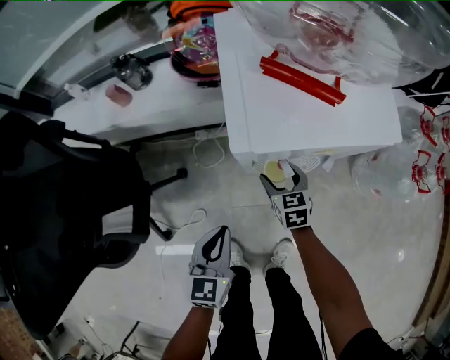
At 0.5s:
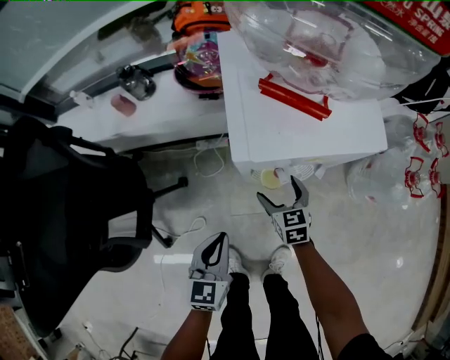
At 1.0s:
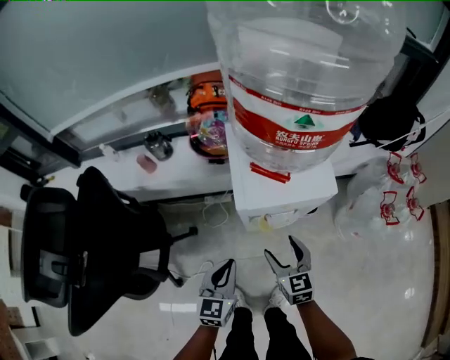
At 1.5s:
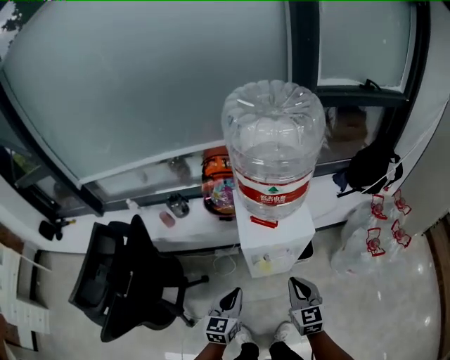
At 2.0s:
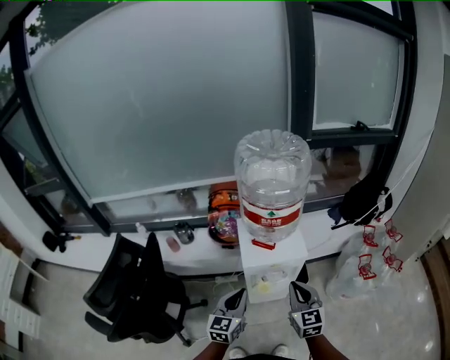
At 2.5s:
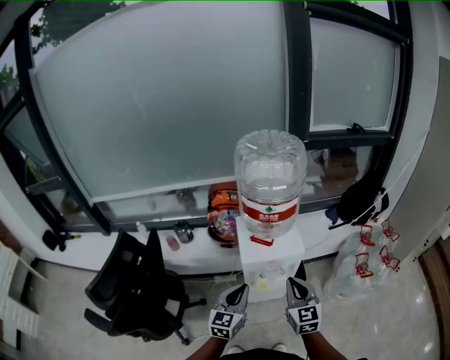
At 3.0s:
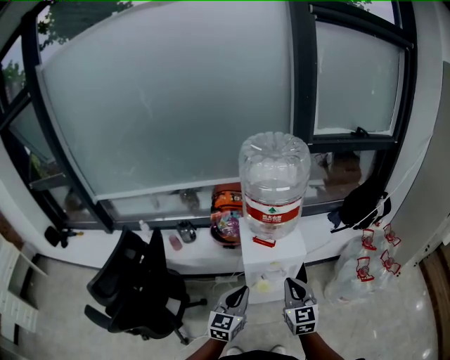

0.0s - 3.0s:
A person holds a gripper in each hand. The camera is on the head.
0.0s - 1.5s: The right gripper shifts about 40 cm upward, rotates about 20 degrees, and closes. The left gripper goes roughly 20 cm upward.
1.5s - 3.0s: Both grippers travel together upward, approximately 10 cm.

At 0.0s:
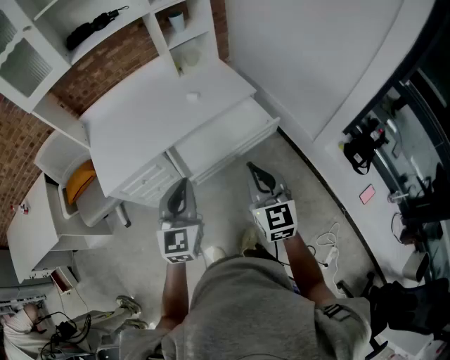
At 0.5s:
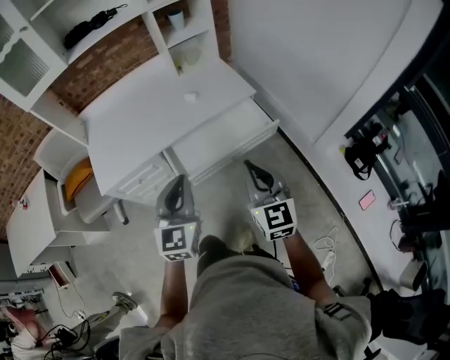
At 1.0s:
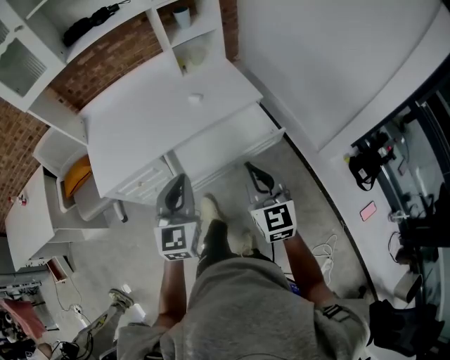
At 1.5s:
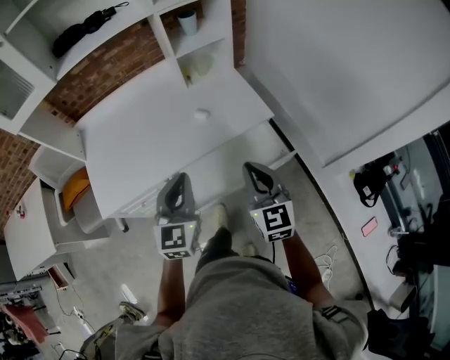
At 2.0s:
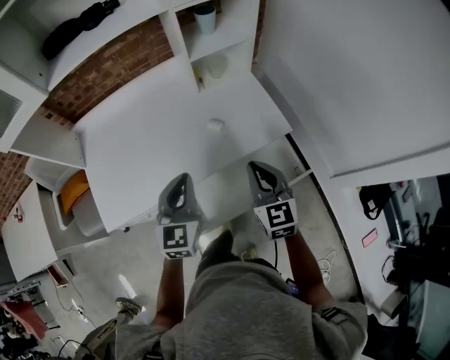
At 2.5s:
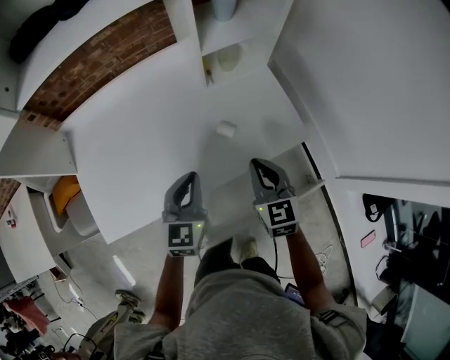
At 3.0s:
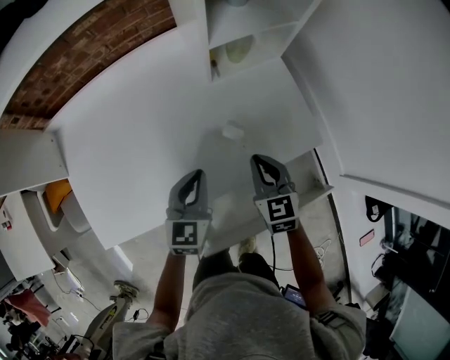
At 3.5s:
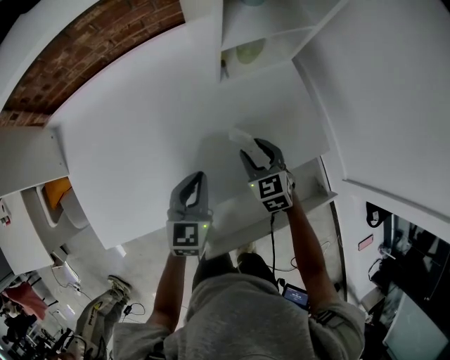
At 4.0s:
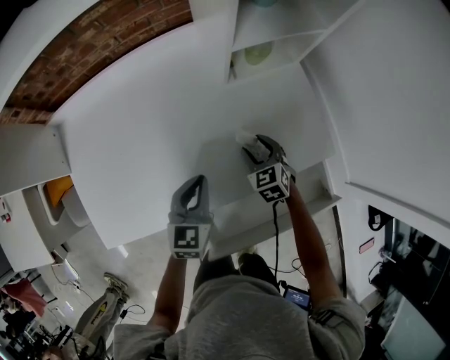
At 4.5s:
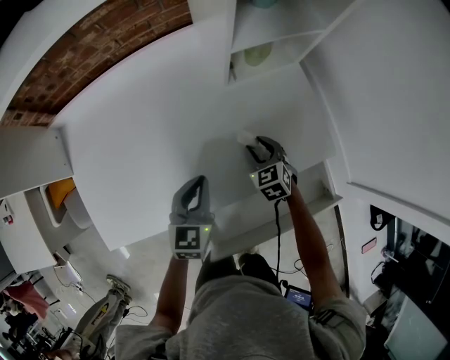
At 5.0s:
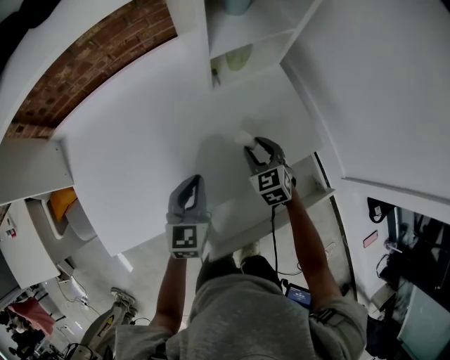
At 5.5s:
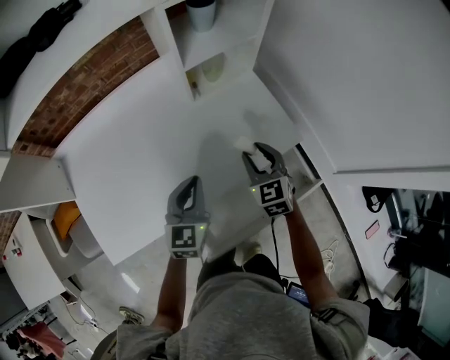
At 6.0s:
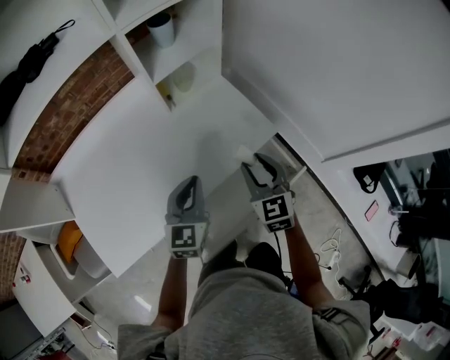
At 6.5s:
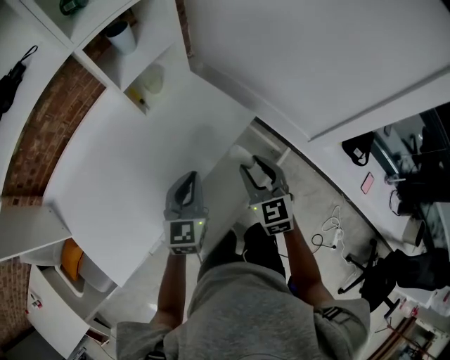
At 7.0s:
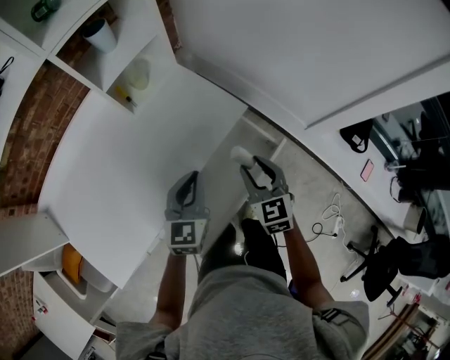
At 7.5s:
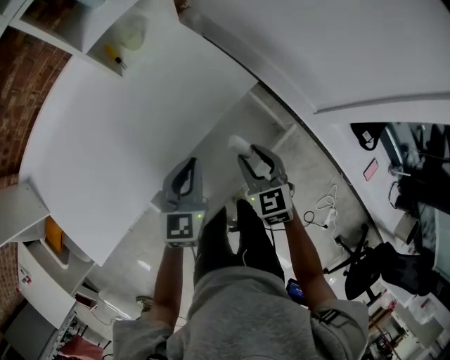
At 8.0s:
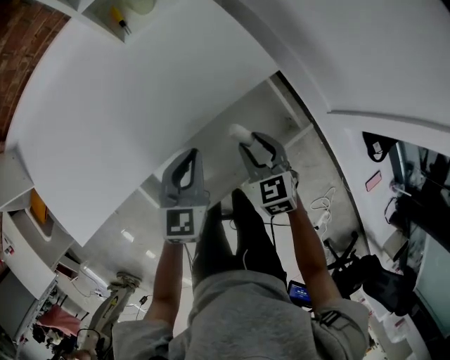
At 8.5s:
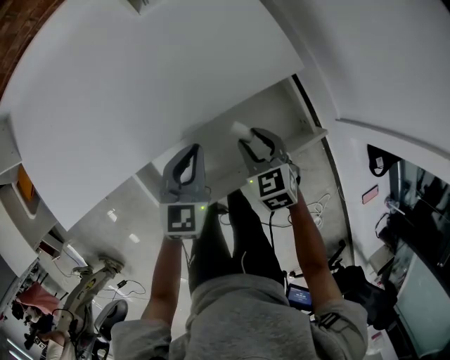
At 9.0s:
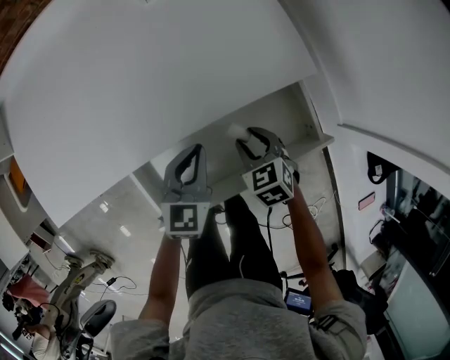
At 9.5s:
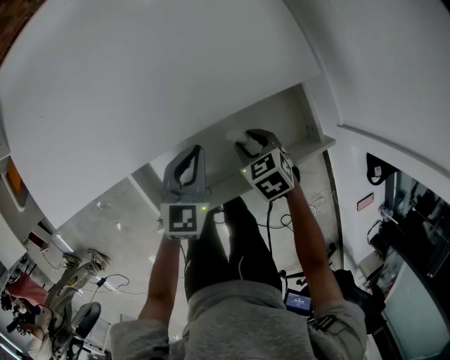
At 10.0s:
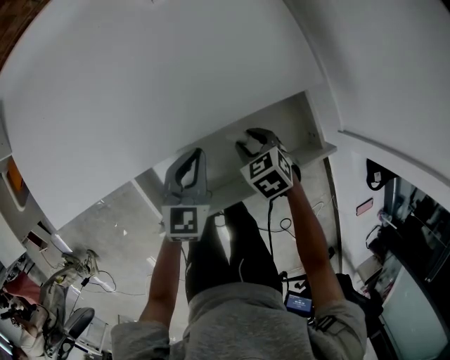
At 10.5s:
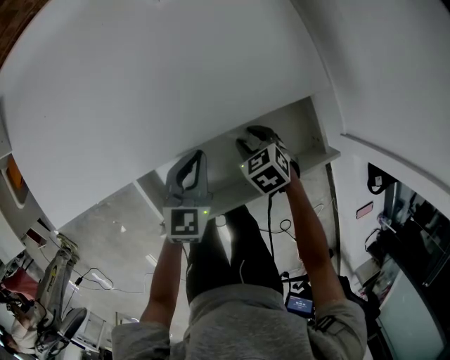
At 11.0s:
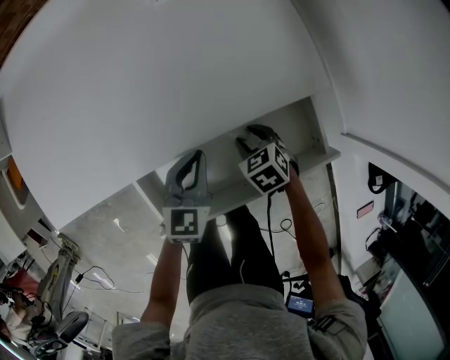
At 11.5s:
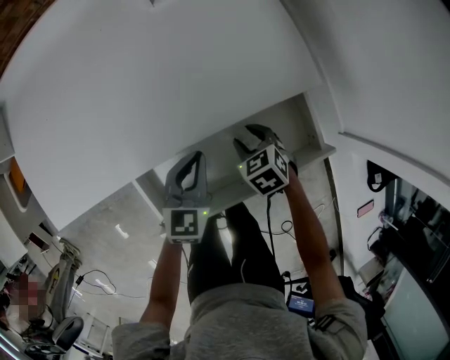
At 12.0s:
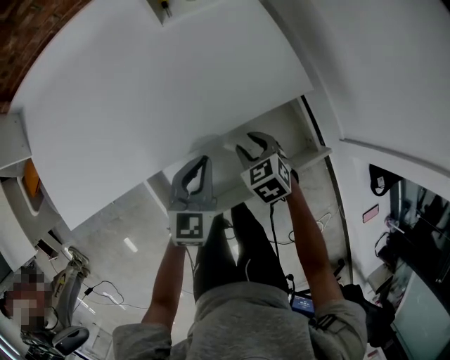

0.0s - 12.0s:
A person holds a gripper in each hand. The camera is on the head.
0.0s - 2.0s: Both grippers travel together forward, some 35 cm.
2.0s - 4.0s: The two grippers go some 30 cm downward and forward. The right gripper rotates roughly 30 degrees, and opens.
4.0s - 6.0s: The left gripper travels upward, to the right and backward by about 15 cm; the right gripper heads upward, backward and to the right, covering about 30 cm, and turns by some 30 degrees.
6.0s - 8.0s: The right gripper travels downward by some 20 cm, and turns by about 20 degrees. The left gripper is displaced downward and to the right by some 20 cm.
8.0s - 10.0s: The left gripper goes some 10 cm downward. Meanwhile the right gripper heads downward and to the left, covering roughly 15 cm, and turns by about 30 degrees.
10.0s - 12.0s: The two grippers go some 5 cm upward.

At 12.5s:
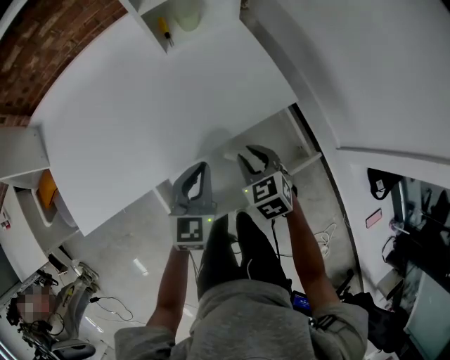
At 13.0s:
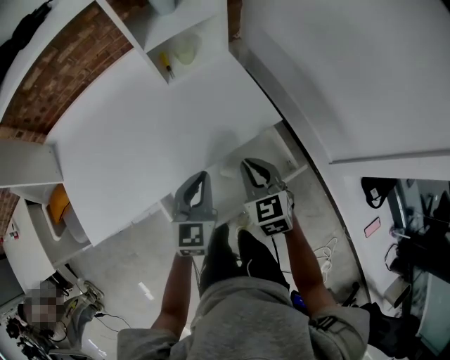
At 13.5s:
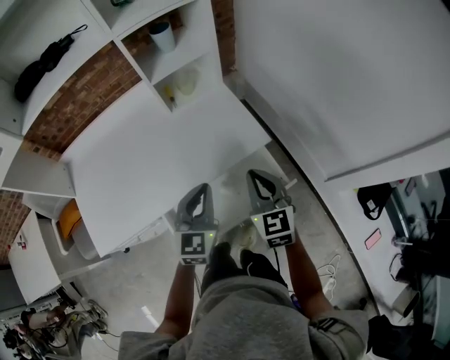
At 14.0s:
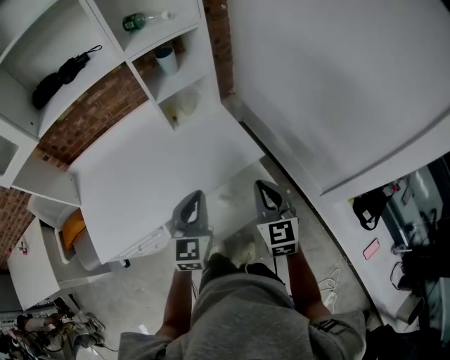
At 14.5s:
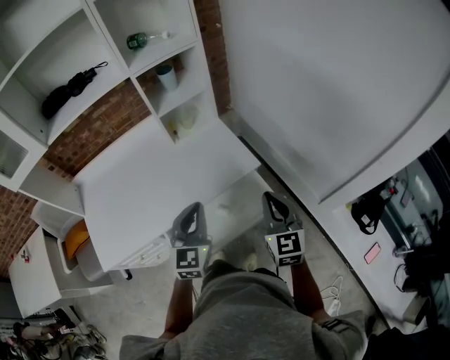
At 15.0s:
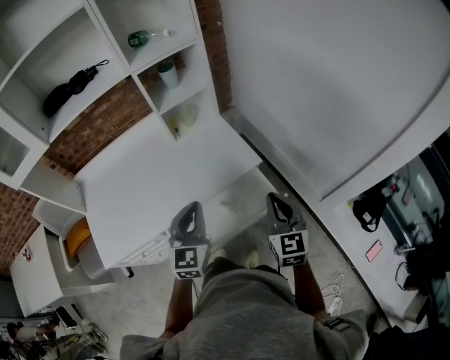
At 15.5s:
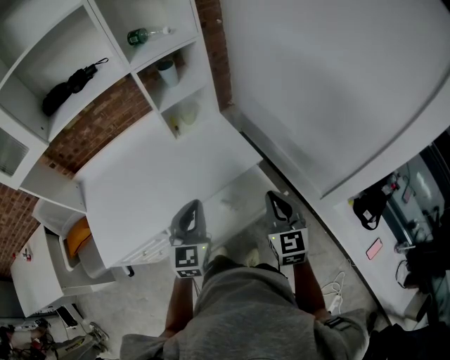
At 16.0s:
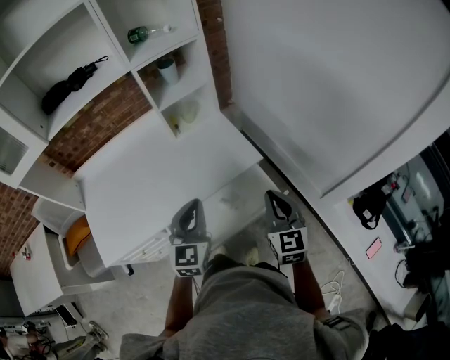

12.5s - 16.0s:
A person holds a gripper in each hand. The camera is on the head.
12.5s - 14.5s: The left gripper goes about 20 cm upward. The right gripper heads upward and to the right, covering about 30 cm, angles its fingers upward, by about 40 degrees, and closes its fingers.
14.5s - 16.0s: Both grippers stay put.

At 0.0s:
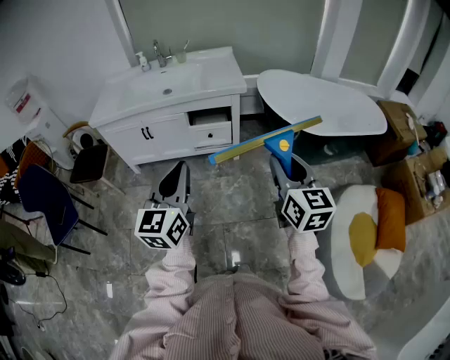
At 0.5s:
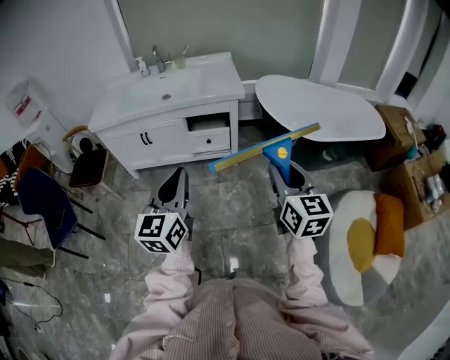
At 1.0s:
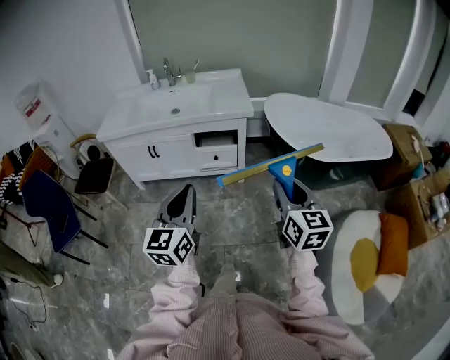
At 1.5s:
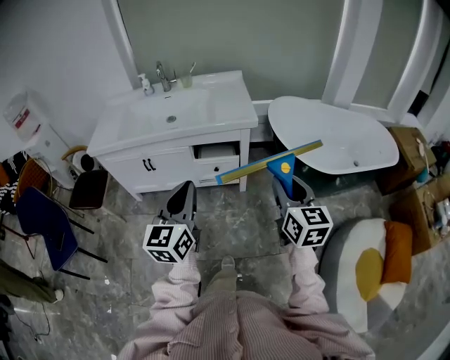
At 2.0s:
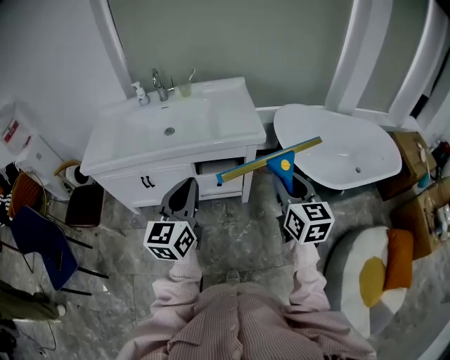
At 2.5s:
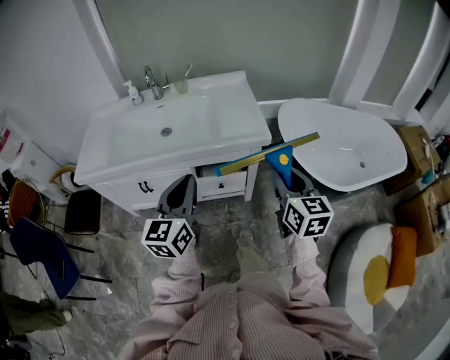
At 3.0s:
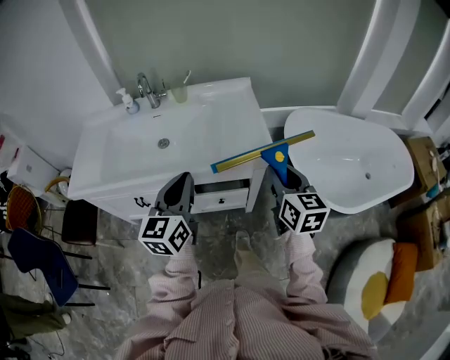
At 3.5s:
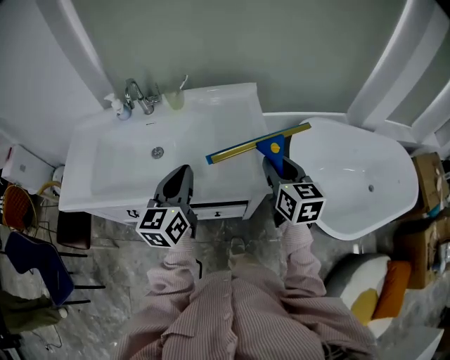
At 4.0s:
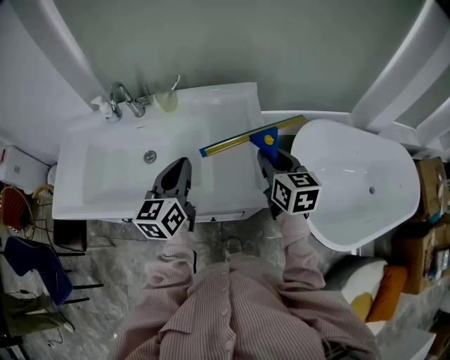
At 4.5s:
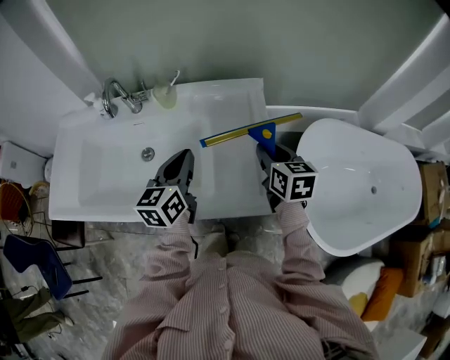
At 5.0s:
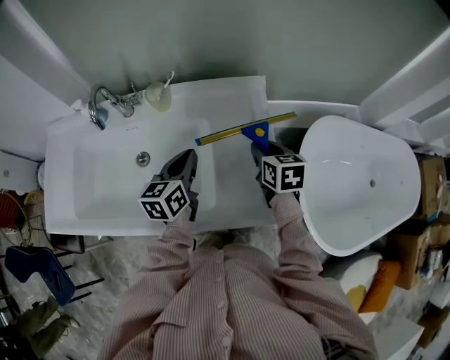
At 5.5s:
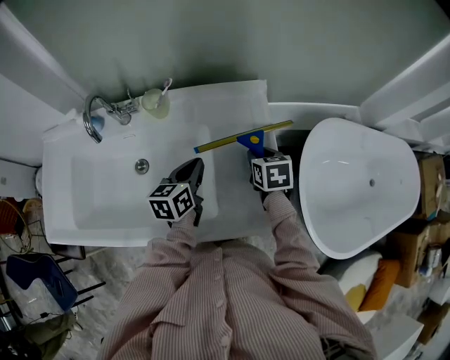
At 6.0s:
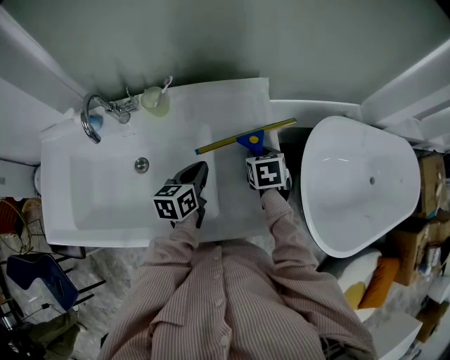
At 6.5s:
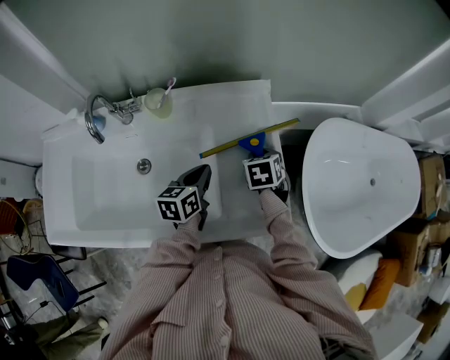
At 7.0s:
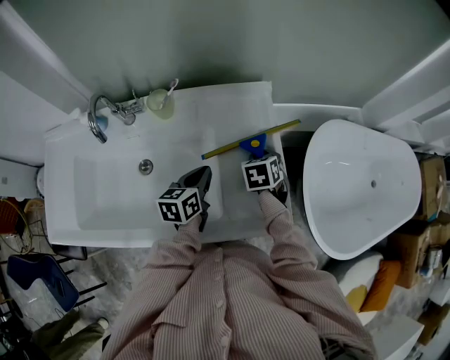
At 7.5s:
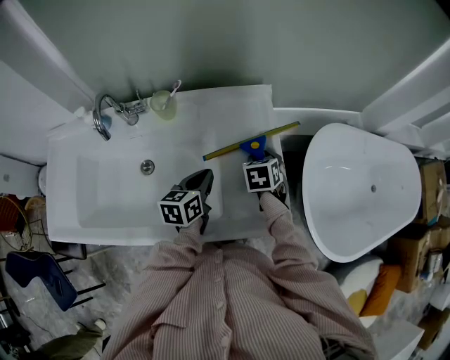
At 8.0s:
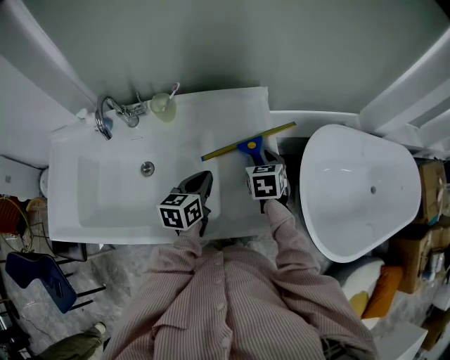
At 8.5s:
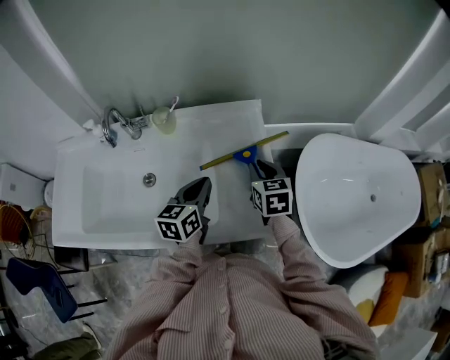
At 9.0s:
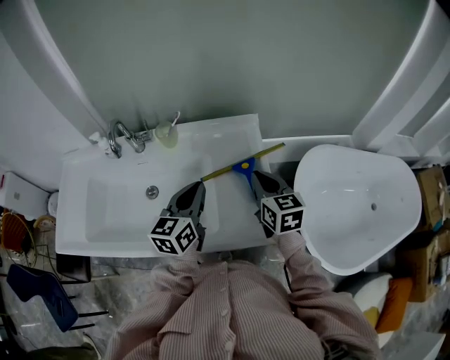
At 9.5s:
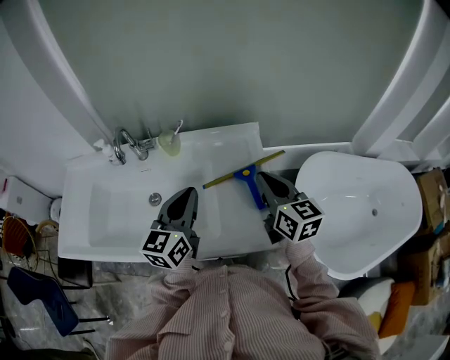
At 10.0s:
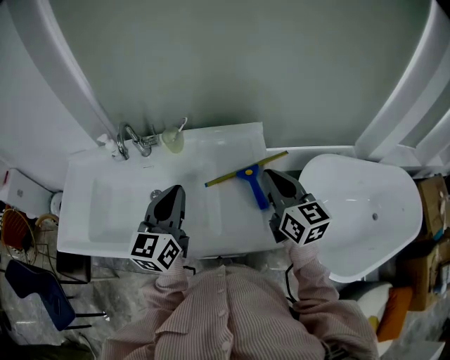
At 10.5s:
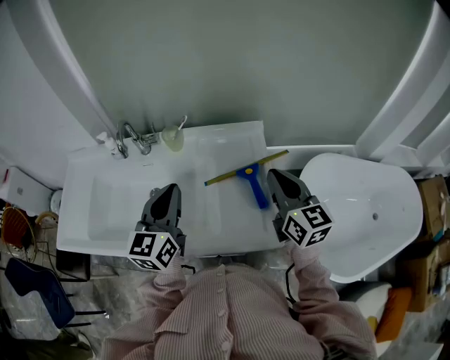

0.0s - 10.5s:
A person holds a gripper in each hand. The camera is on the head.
0.0s - 2.0s: The grippers both shift forward by some 30 cm.
2.0s - 4.0s: The two grippers travel together, forward, approximately 50 cm.
4.0s - 6.5s: Both grippers travel together downward and forward, approximately 20 cm. The right gripper points its fingers roughly 40 degrees further downward, while the left gripper changes its angle by some 30 degrees.
6.5s - 8.5s: The two grippers go approximately 10 cm upward. The right gripper rotates roughly 20 degrees.
8.5s - 10.5s: The right gripper travels upward by roughly 15 cm, and rotates approximately 30 degrees. The left gripper heads upward and to the left, covering some 15 cm, and changes its angle by approximately 30 degrees.
